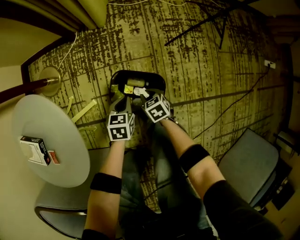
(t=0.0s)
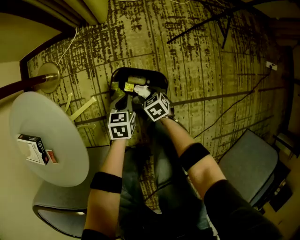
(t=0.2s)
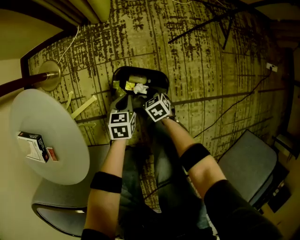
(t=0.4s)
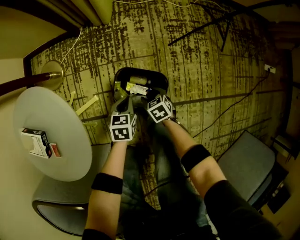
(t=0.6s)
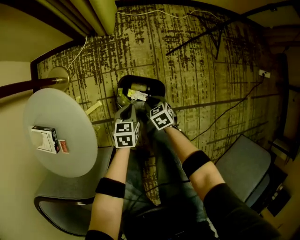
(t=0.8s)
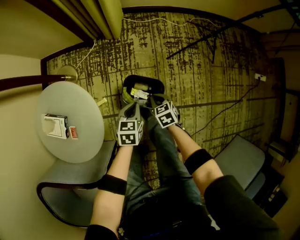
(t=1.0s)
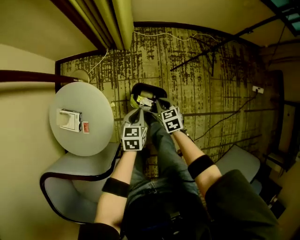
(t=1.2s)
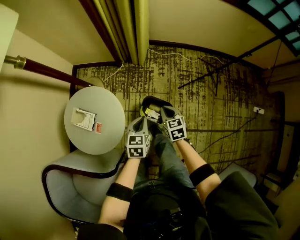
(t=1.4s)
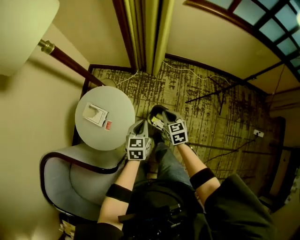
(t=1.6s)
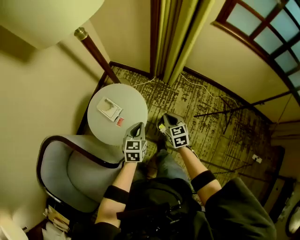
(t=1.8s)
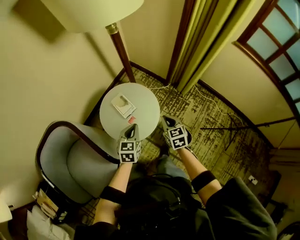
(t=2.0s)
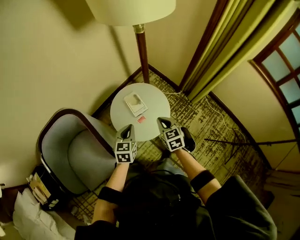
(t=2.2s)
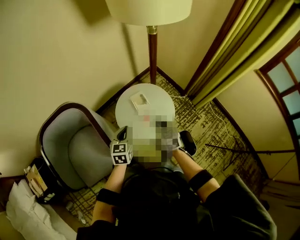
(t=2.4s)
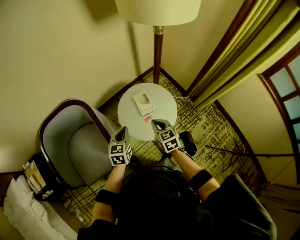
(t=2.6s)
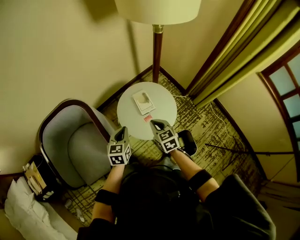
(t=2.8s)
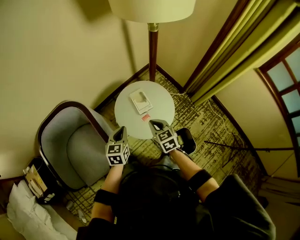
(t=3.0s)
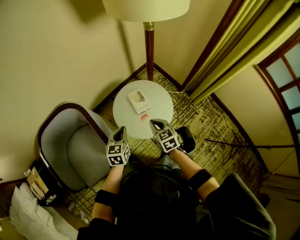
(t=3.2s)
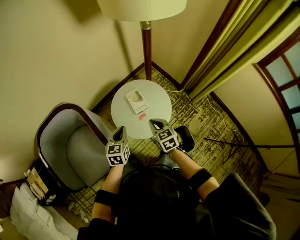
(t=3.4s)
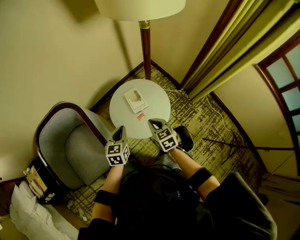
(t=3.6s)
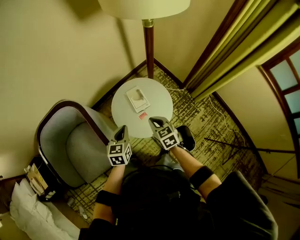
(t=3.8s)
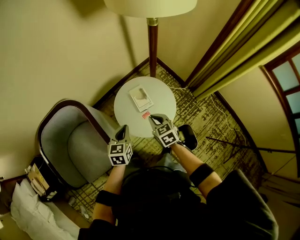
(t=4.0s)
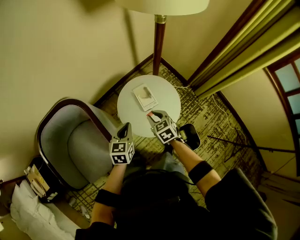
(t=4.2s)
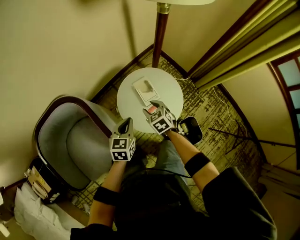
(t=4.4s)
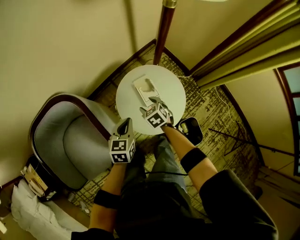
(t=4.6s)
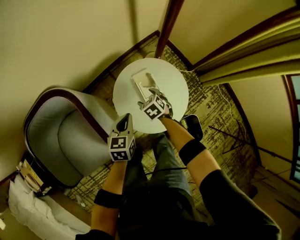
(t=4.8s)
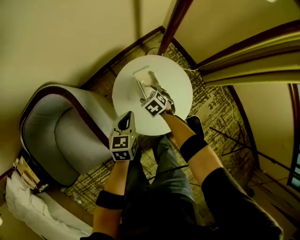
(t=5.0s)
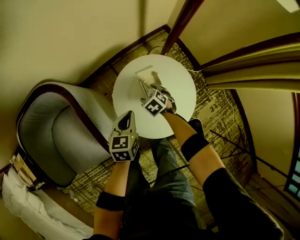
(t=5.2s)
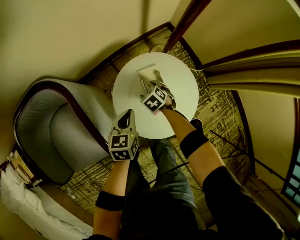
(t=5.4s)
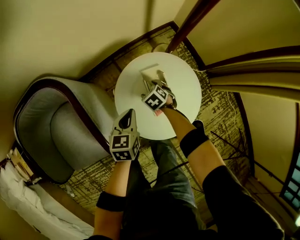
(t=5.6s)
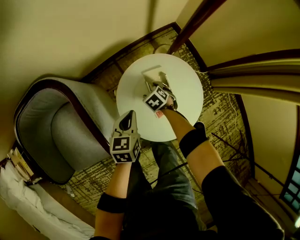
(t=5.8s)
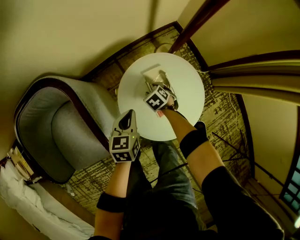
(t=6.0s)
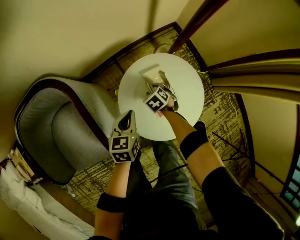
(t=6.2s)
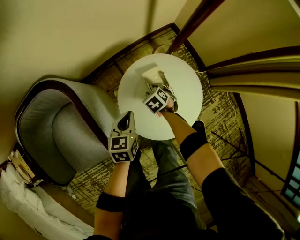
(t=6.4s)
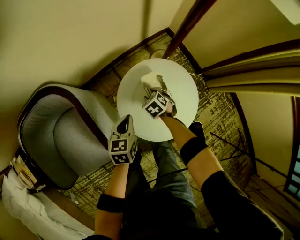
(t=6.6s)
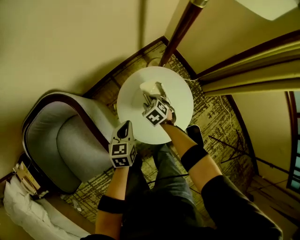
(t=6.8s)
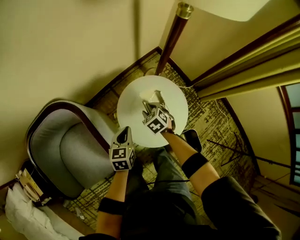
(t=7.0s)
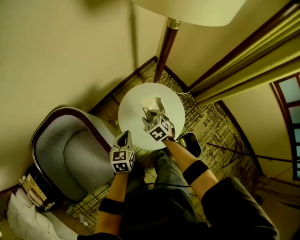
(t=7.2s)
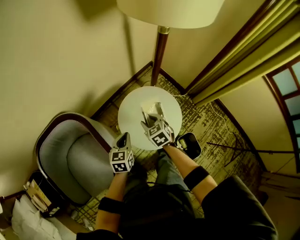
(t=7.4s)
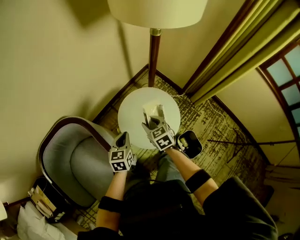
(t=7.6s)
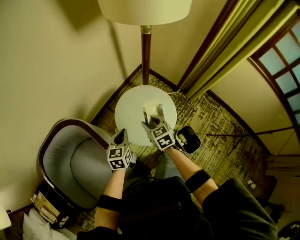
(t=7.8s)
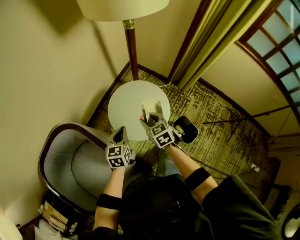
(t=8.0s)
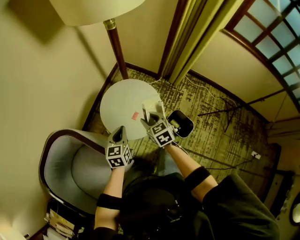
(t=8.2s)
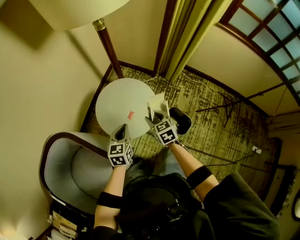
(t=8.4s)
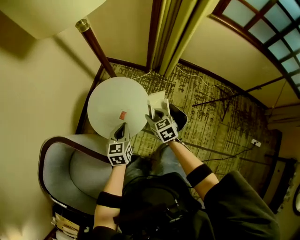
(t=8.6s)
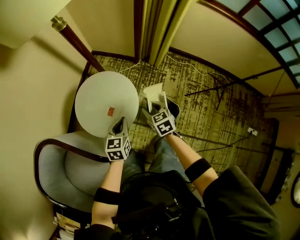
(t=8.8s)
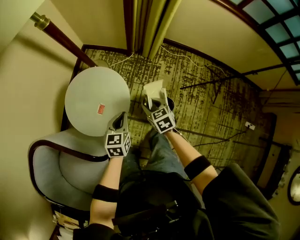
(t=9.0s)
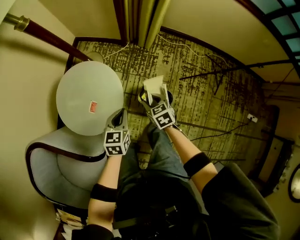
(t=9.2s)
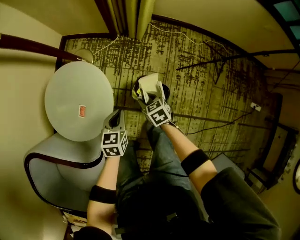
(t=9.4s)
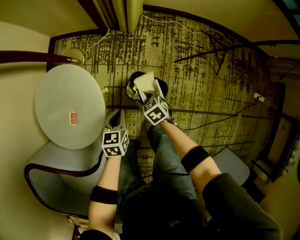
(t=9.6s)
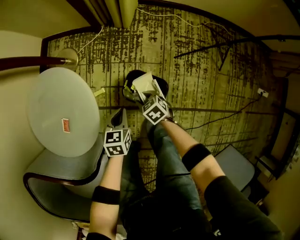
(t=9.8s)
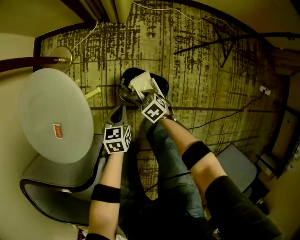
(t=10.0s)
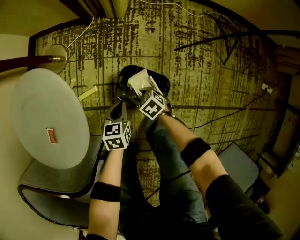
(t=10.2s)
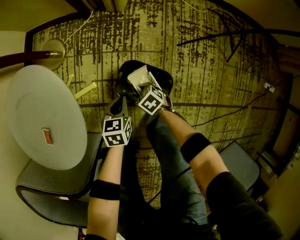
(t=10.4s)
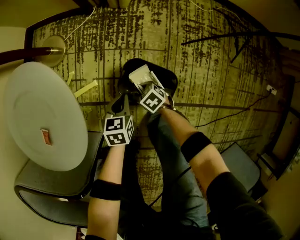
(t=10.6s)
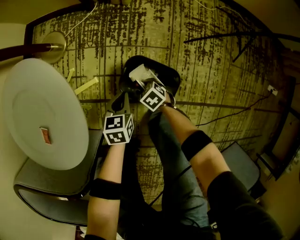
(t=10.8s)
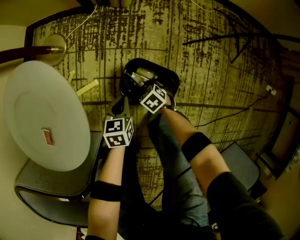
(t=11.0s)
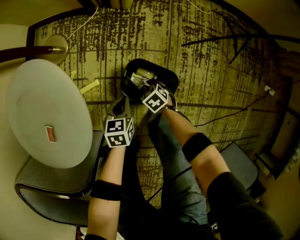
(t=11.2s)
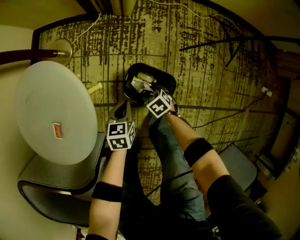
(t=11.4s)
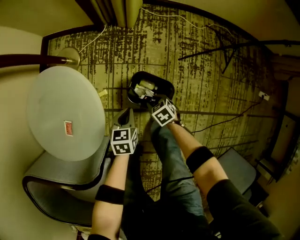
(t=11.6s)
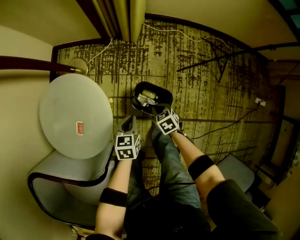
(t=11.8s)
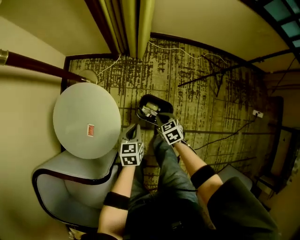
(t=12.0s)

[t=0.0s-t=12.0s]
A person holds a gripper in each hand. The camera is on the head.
t=0.0s to t=1.6s: The grippers both shift upward by approximately 50 cm. The left gripper rotates roughly 30 degrees, while the right gripper rotates about 30 degrees, and opens, then closes again.
t=1.6s to t=3.0s: The left gripper changes place by some 35 cm, and rotates approximately 40 degrees. Meanwhile the right gripper changes place by approximately 40 cm, and rotates approximately 50 degrees.
t=3.0s to t=4.4s: The right gripper moves forward and downward, some 15 cm, and opens up. The left gripper heads forward, covering roughly 5 cm.
t=4.4s to t=6.0s: The left gripper moves downward and forward, roughly 20 cm. Meanwhile the right gripper travels downward and forward by approximately 30 cm, rotates approximately 30 degrees, and opens and closes again.
t=6.0s to t=7.6s: The right gripper moves upward, approximately 35 cm, and points its fingers about 30 degrees further upward, while the left gripper shifts approximately 15 cm upward.
t=7.6s to t=9.0s: The left gripper ends up about 35 cm from where it was, and turns by roughly 30 degrees. The right gripper shifts by some 35 cm, and changes its angle by roughly 30 degrees.
t=9.0s to t=10.4s: The left gripper moves downward and to the right, some 50 cm, and changes its angle by roughly 20 degrees. Meanwhile the right gripper moves downward, roughly 50 cm, and swivels some 20 degrees.
t=10.4s to t=12.0s: Both grippers travel together upward, about 30 cm. The right gripper swivels roughly 20 degrees, and closes up.

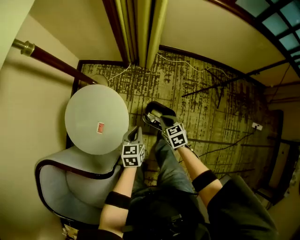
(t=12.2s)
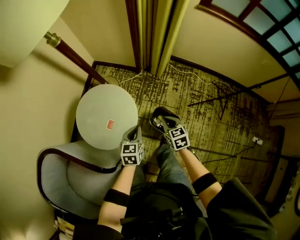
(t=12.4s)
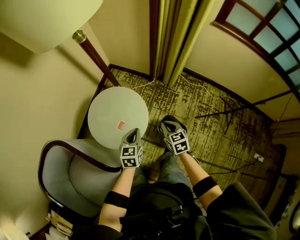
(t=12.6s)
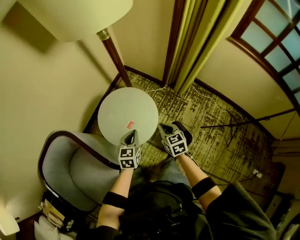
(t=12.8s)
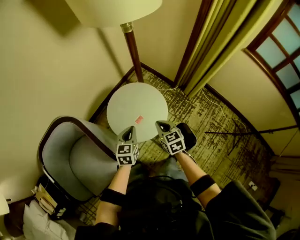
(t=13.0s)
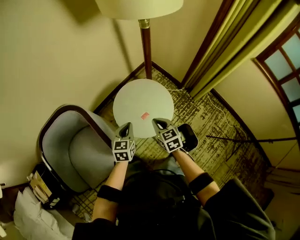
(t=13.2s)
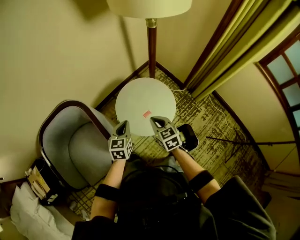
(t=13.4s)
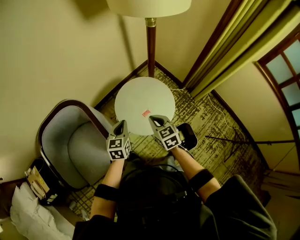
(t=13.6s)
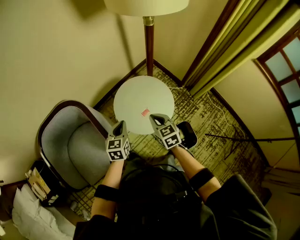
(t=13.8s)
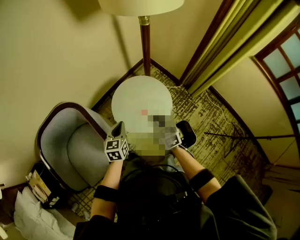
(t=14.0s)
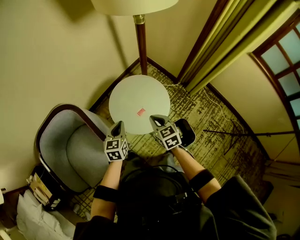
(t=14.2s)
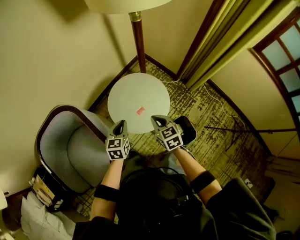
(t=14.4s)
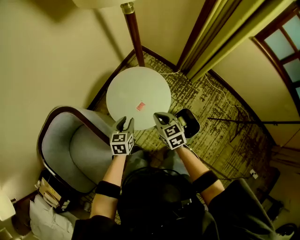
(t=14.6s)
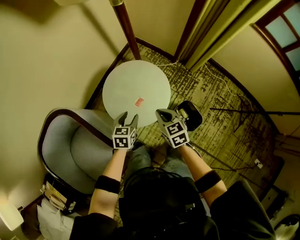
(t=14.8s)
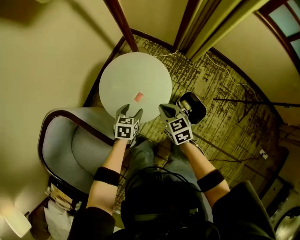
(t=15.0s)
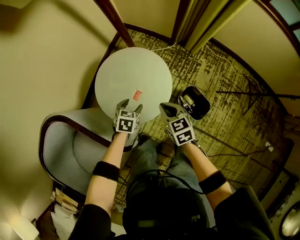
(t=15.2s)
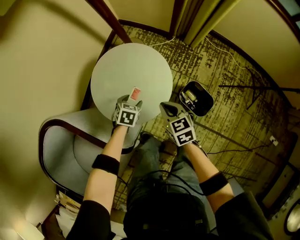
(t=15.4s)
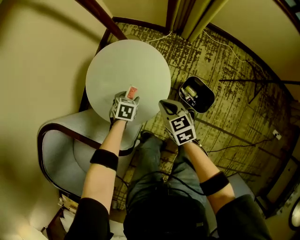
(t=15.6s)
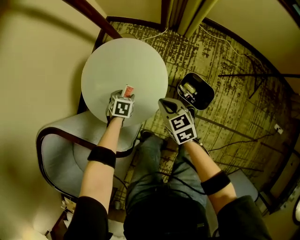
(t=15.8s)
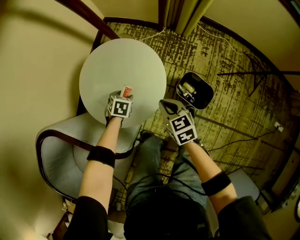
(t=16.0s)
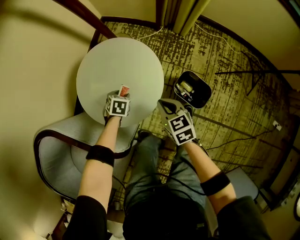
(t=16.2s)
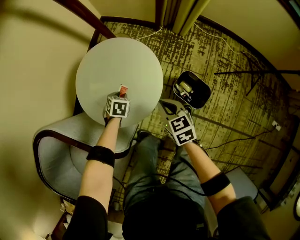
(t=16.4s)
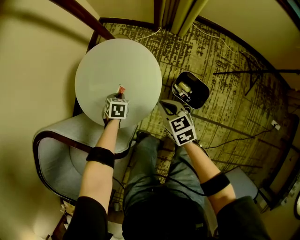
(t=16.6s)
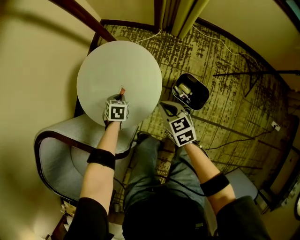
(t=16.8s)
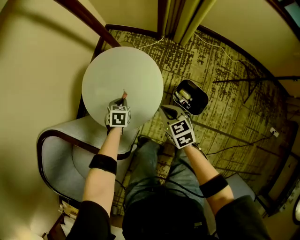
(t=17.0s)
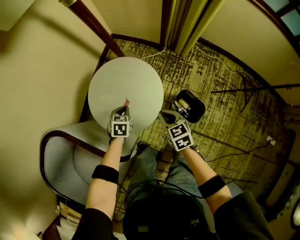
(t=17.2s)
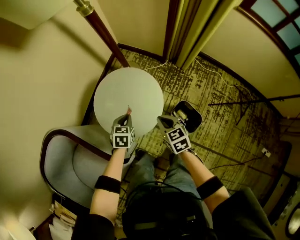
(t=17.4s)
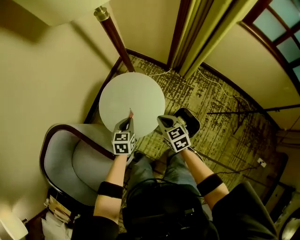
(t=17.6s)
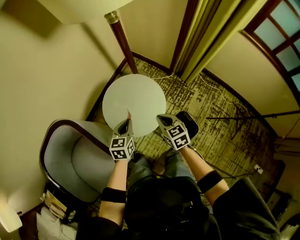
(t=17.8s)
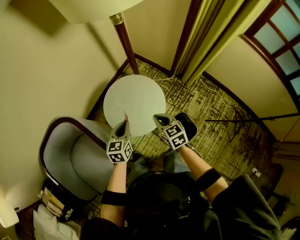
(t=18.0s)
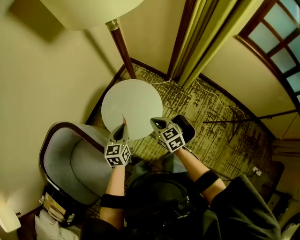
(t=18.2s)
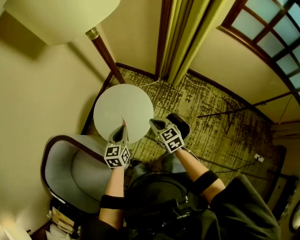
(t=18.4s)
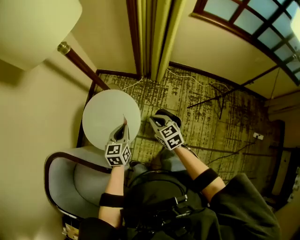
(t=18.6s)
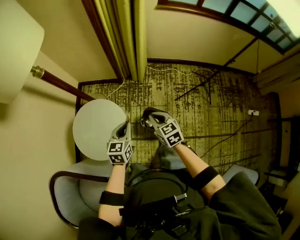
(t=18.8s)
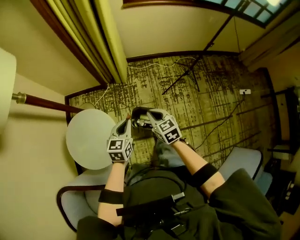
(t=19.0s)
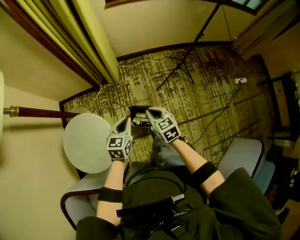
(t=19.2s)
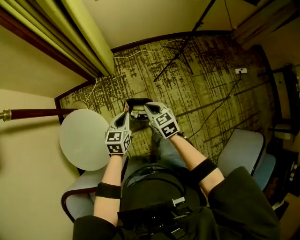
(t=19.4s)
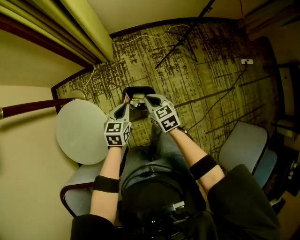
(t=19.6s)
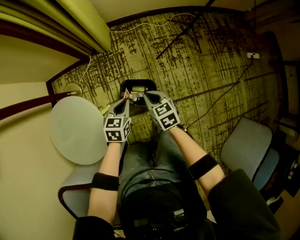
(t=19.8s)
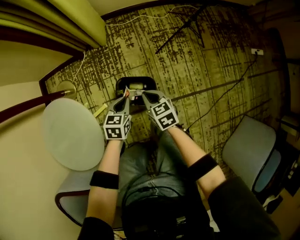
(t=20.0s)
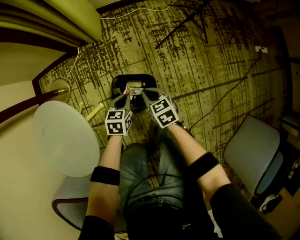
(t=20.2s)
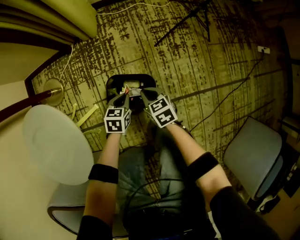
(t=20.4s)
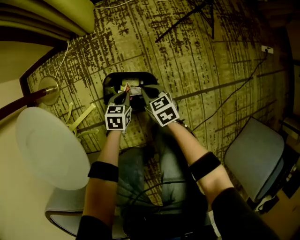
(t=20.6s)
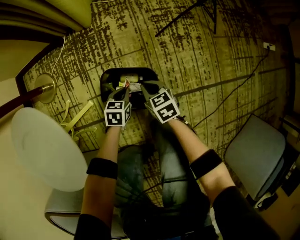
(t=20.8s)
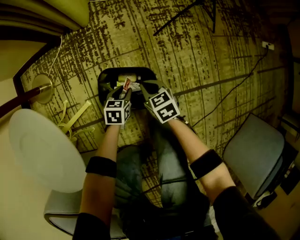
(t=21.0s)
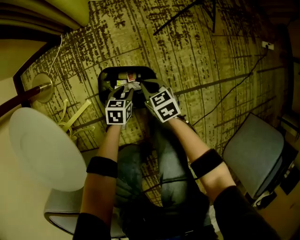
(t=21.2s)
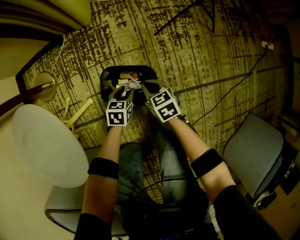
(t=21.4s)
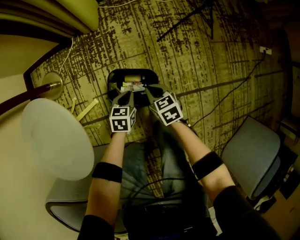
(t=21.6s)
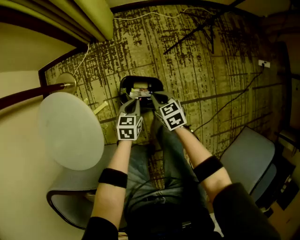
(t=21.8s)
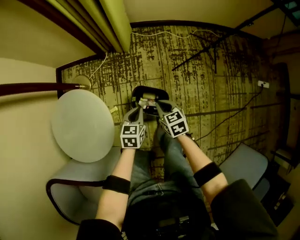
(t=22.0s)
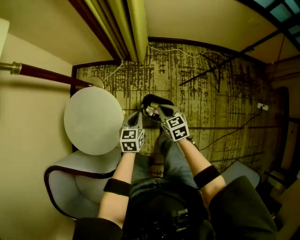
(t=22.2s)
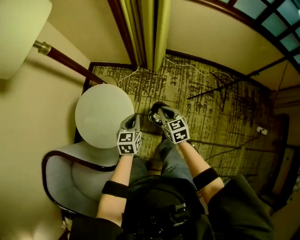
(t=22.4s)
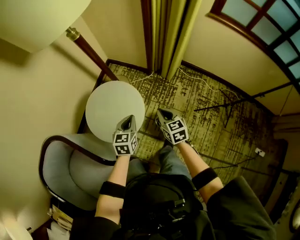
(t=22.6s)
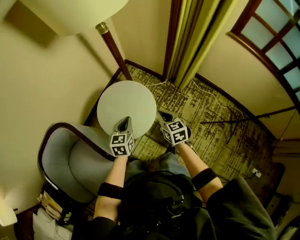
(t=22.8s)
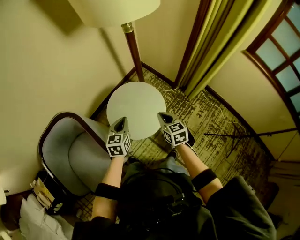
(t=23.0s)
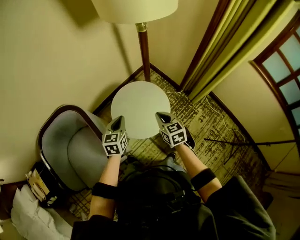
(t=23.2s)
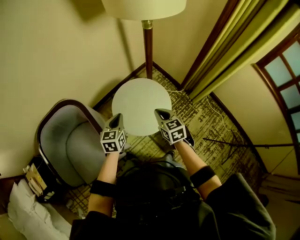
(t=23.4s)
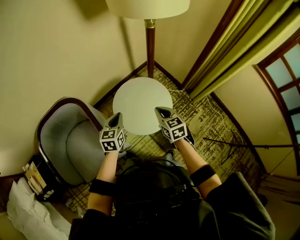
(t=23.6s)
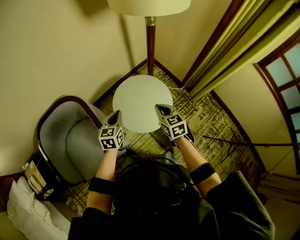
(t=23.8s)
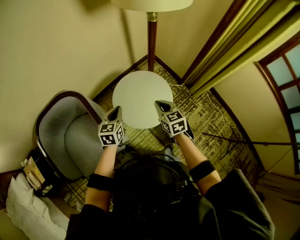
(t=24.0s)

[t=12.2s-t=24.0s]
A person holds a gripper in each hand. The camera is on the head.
t=12.2s to t=13.6s: The right gripper ends up approximately 40 cm from where it was, and rotates about 50 degrees; the left gripper ends up roughly 40 cm from where it was, and turns by about 40 degrees.
t=13.6s to t=15.2s: The right gripper shifts roughly 15 cm downward, and turns by approximately 20 degrees. The left gripper travels downward by approximately 25 cm, rotates some 50 degrees, and opens.
t=15.2s to t=16.6s: The right gripper moves downward, about 10 cm; the left gripper travels downward by some 15 cm, and closes.
t=16.6s to t=18.2s: The right gripper goes approximately 25 cm upward, and rotates some 20 degrees. The left gripper travels upward by about 40 cm, and points its fingers some 40 degrees further upward.
t=18.2s to t=19.6s: The right gripper ends up approximately 40 cm from where it was, and turns by about 50 degrees. The left gripper shifts by some 40 cm, and turns by roughly 60 degrees.
t=19.6s to t=21.0s: The two grippers go some 40 cm downward.
t=21.0s to t=22.6s: The grippers both shift upward by roughly 50 cm. The right gripper swivels approximately 40 degrees, while the left gripper changes its angle by some 50 degrees.
t=22.6s to t=24.0s: The left gripper moves about 30 cm, and rotates roughly 30 degrees, while the right gripper changes place by about 25 cm, and swivels some 30 degrees.
